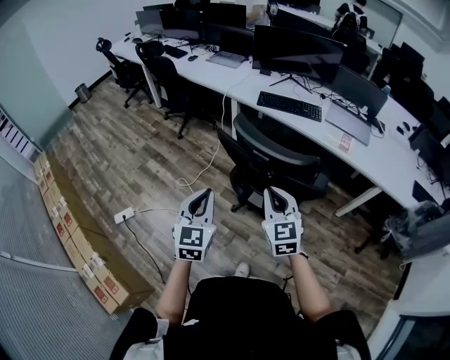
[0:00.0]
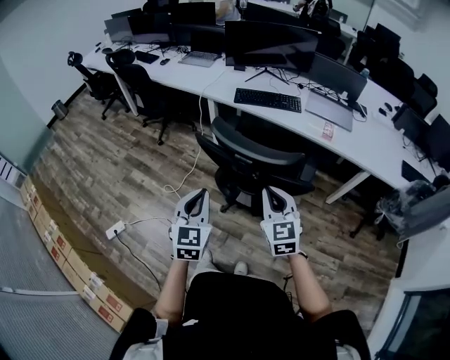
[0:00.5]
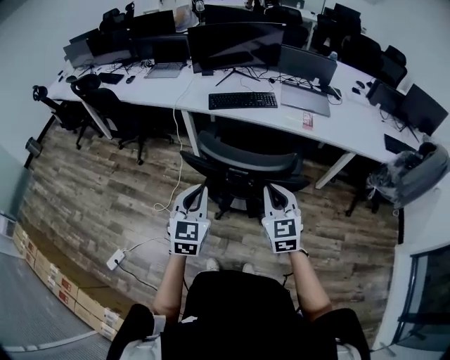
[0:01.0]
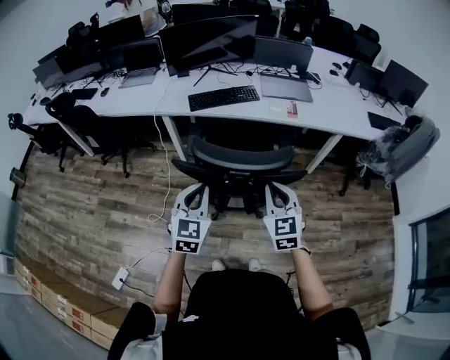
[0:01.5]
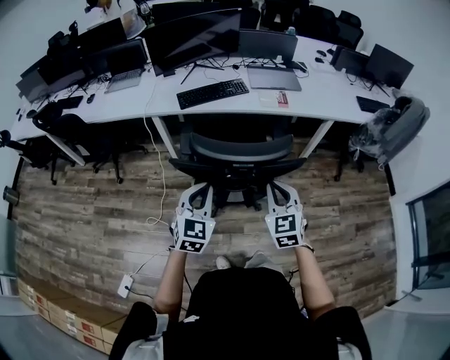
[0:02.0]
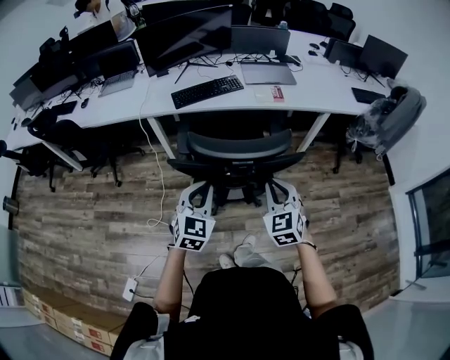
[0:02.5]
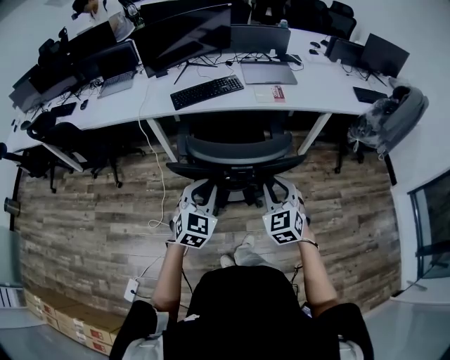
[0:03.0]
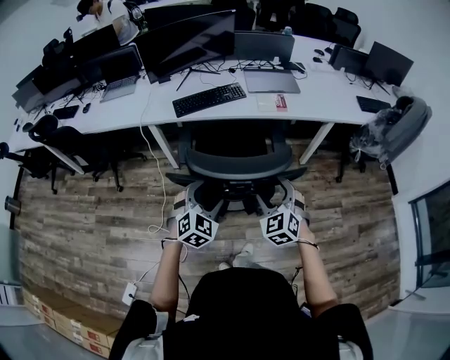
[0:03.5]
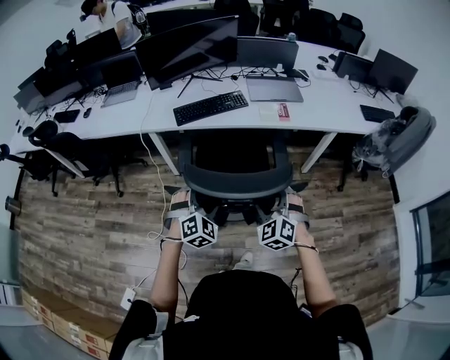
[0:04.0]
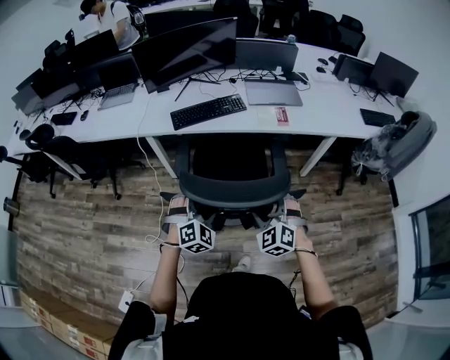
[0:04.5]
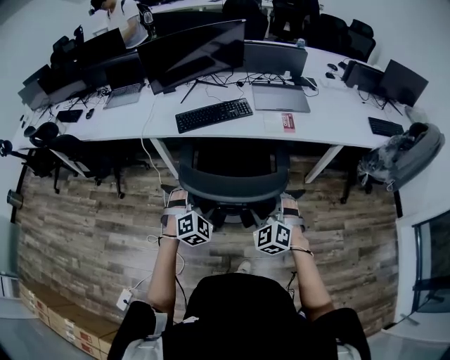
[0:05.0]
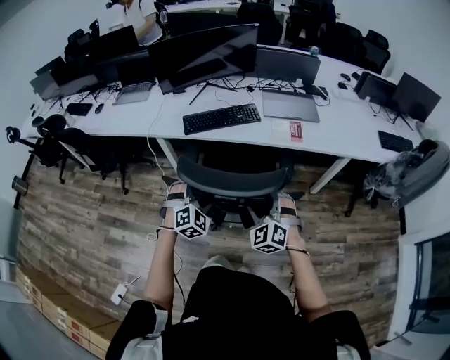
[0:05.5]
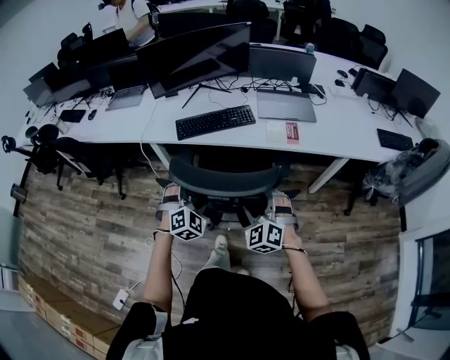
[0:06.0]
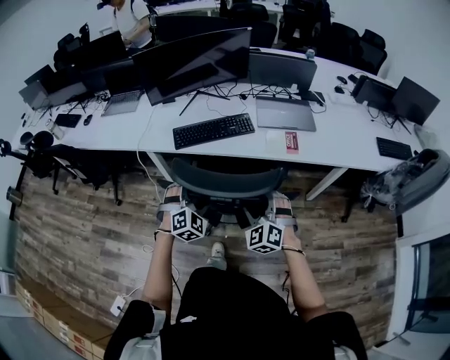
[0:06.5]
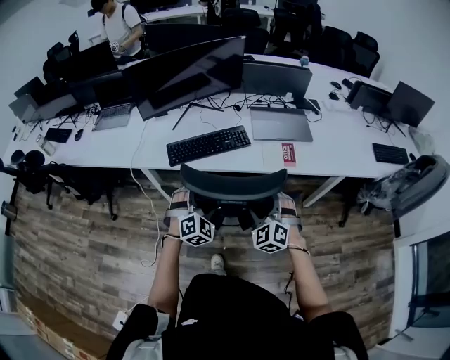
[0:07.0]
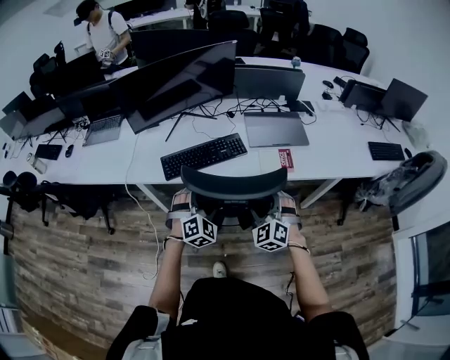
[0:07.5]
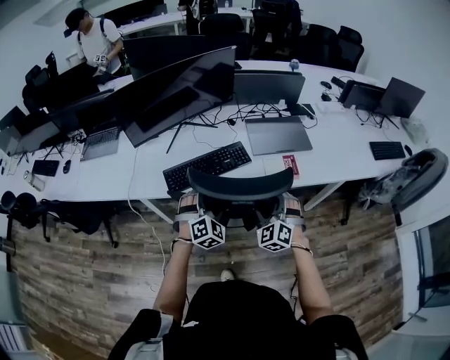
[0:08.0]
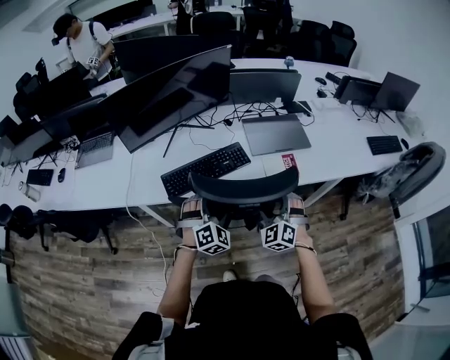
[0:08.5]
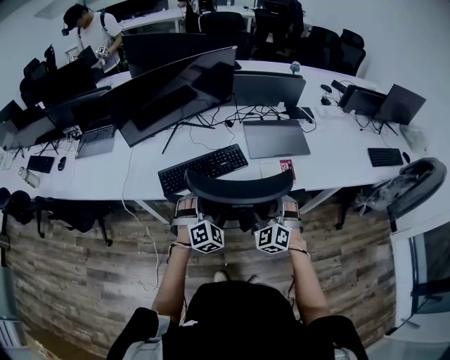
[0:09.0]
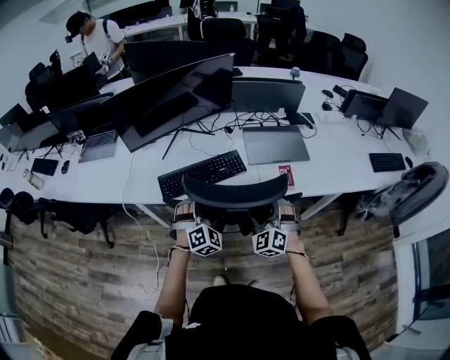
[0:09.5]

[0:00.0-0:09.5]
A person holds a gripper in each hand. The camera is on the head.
0:00.0 to 0:02.0: The left gripper shifts by some 15 cm, and turns by some 40 degrees. The right gripper shifts by roughly 5 cm, and rotates approximately 40 degrees.
0:02.0 to 0:04.0: Both grippers move forward and downward, about 10 cm. The right gripper swivels some 30 degrees, and opens its fingers. Meanwhile the left gripper rotates about 40 degrees, and opens.
0:04.0 to 0:05.5: The grippers both shift forward by about 10 cm.
0:05.5 to 0:07.5: The grippers both shift forward by roughly 20 cm.
0:07.5 to 0:09.5: Both grippers move forward, some 5 cm.

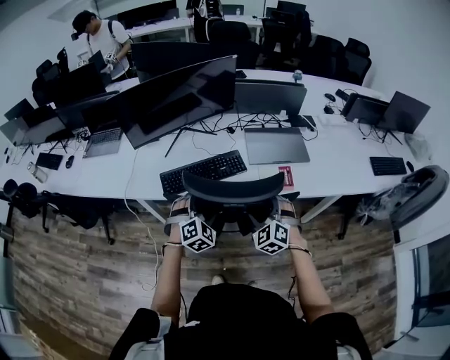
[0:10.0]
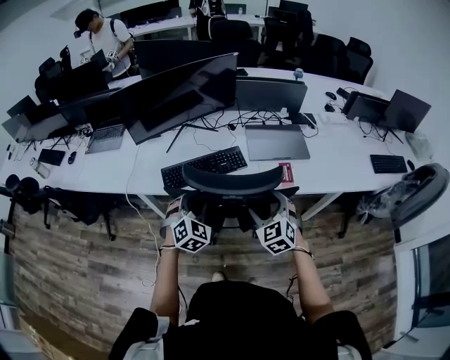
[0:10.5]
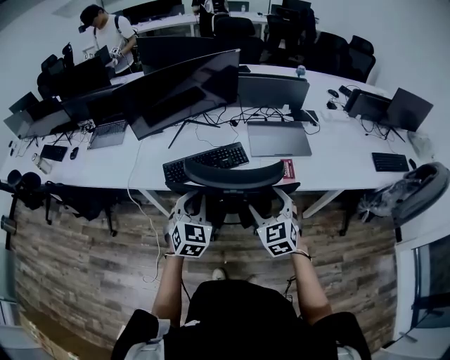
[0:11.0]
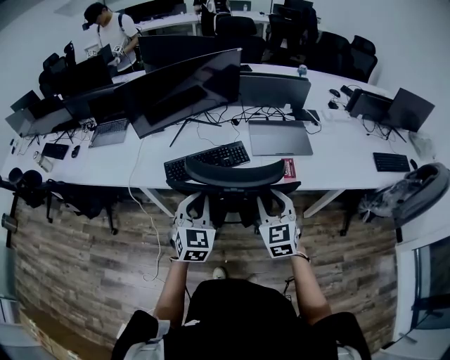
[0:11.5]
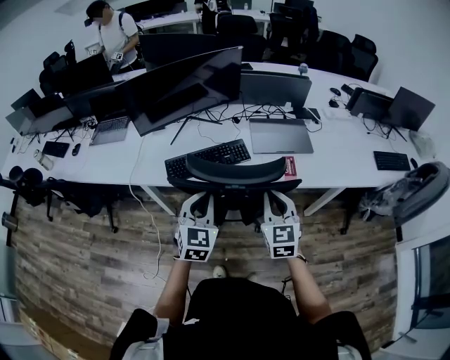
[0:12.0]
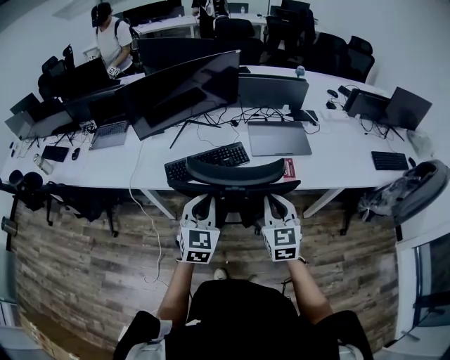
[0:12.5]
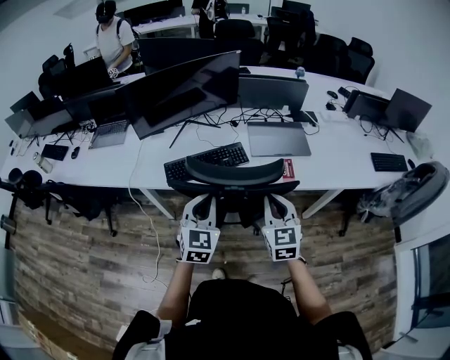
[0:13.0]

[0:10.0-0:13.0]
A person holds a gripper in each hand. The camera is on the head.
0:10.0 to 0:11.5: The left gripper shifts approximately 10 cm upward and backward, changes its angle by roughly 40 degrees, and closes its fingers. Meanwhile the right gripper travels upward by about 10 cm, changes its angle by roughly 30 degrees, and closes.
0:11.5 to 0:13.0: The grippers stay close to where they were, moving slightly.

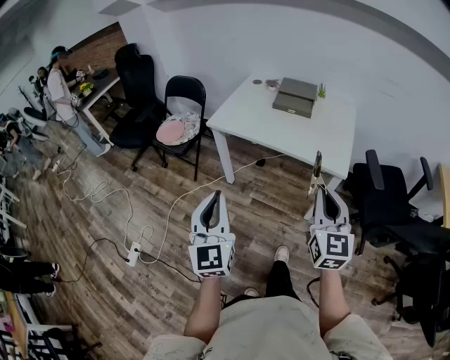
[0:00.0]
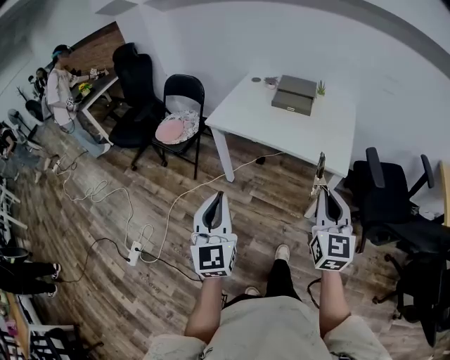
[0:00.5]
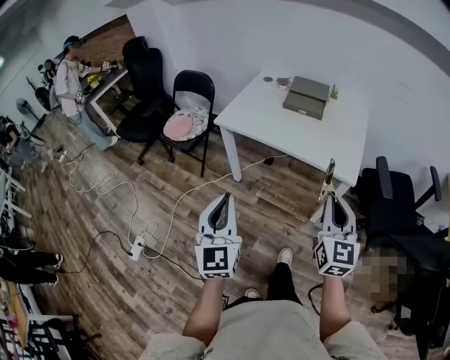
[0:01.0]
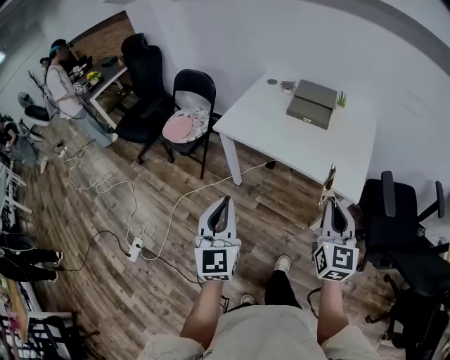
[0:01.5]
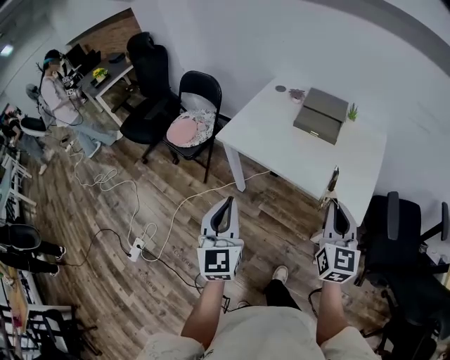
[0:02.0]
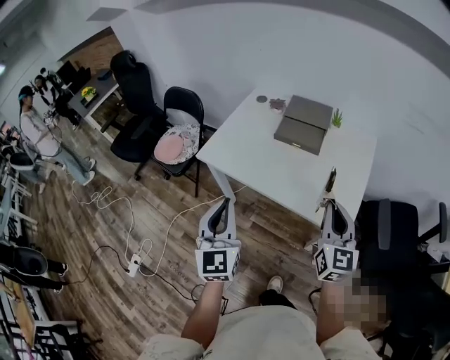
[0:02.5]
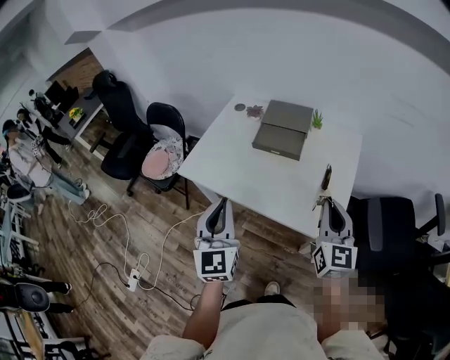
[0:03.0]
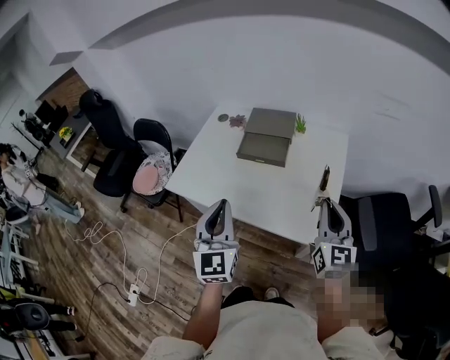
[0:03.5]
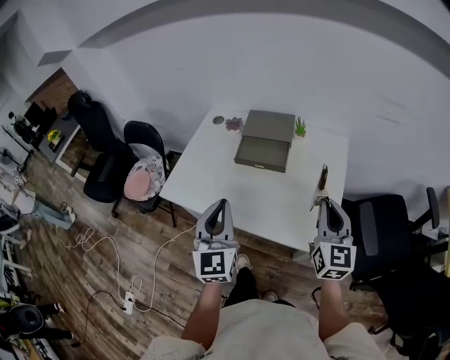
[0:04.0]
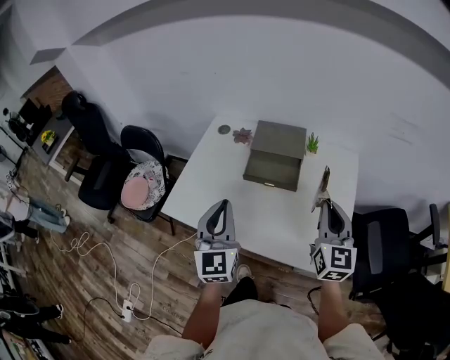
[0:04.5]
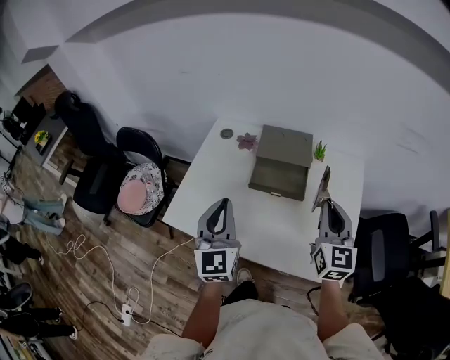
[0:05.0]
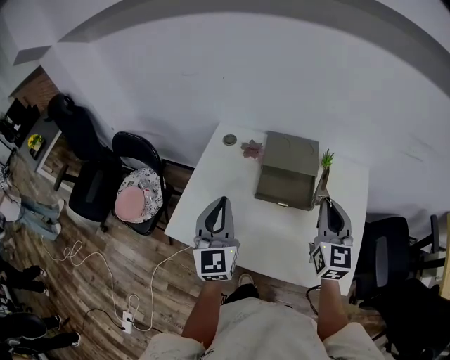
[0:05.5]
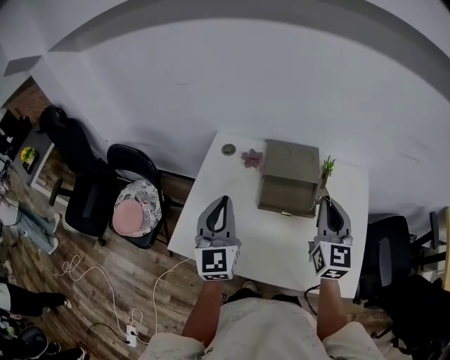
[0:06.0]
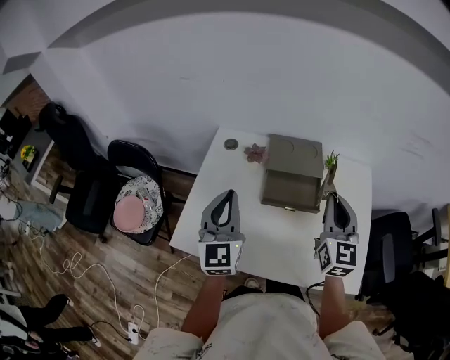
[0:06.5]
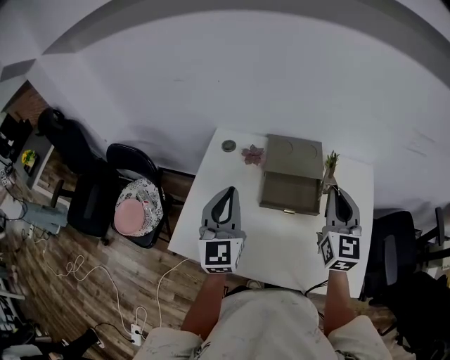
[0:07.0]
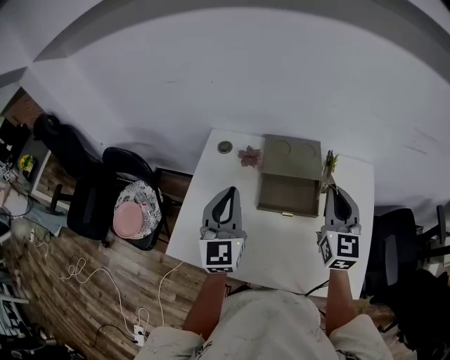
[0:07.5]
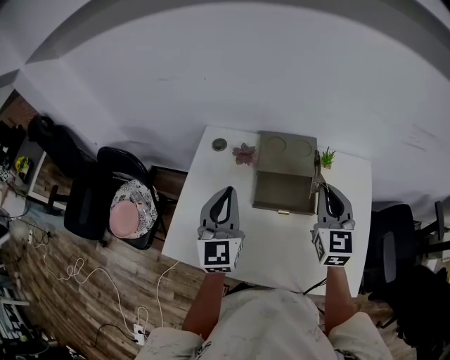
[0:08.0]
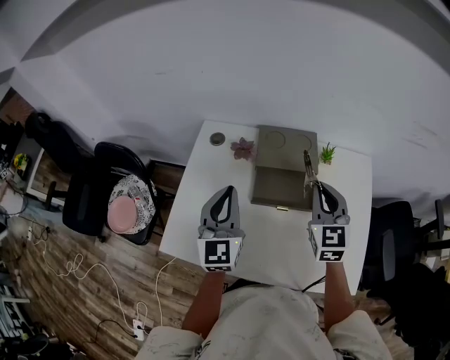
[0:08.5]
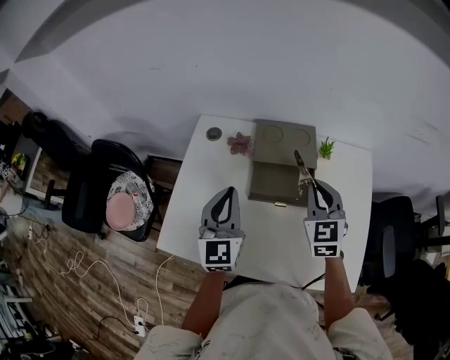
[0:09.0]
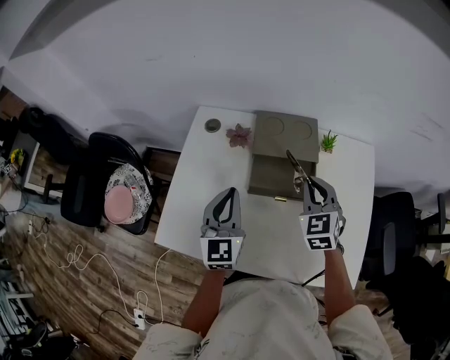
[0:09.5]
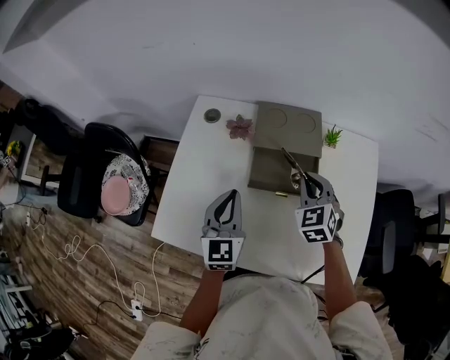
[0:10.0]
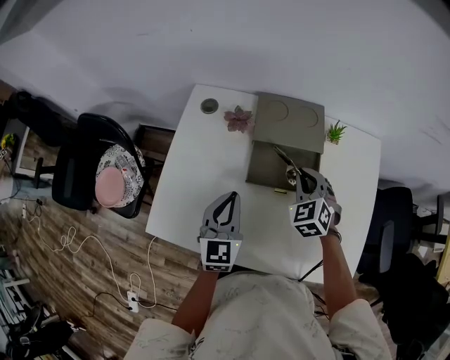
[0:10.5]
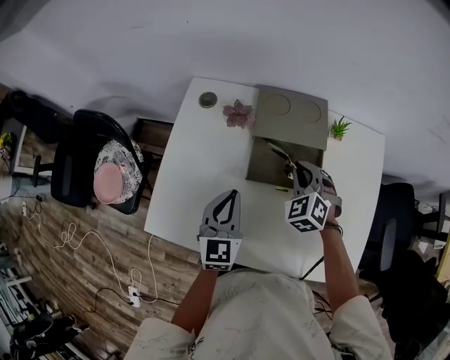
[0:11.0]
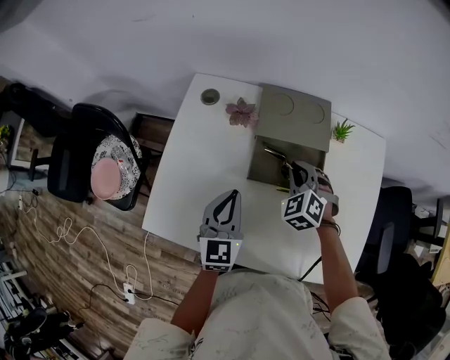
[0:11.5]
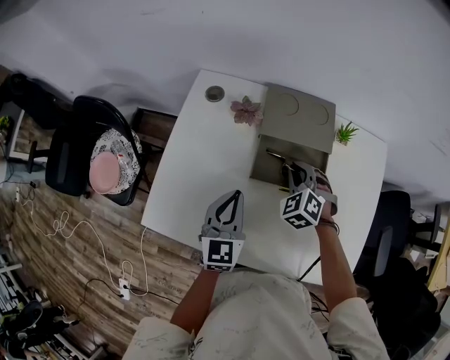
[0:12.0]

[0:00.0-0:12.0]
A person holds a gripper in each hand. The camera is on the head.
0:00.0 to 0:02.0: The grippers both shift forward by about 20 cm.
0:02.0 to 0:04.0: The grippers both shift forward and to the right by about 25 cm.
0:04.0 to 0:06.0: Both grippers move forward and to the left, about 30 cm.
0:06.0 to 0:08.0: The two grippers go some 5 cm forward.
0:08.0 to 0:10.0: Both grippers travel together downward, roughly 10 cm. The right gripper swivels approximately 30 degrees.
0:10.0 to 0:12.0: The left gripper shifts roughly 5 cm downward. Meanwhile the right gripper is displaced downward by approximately 10 cm, and changes its angle by roughly 20 degrees.

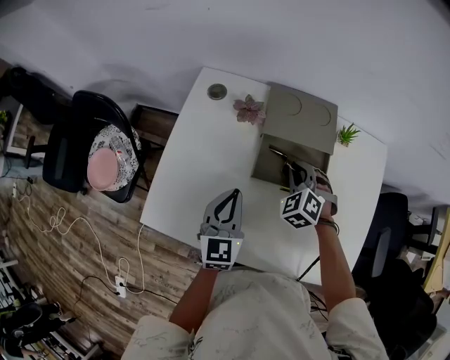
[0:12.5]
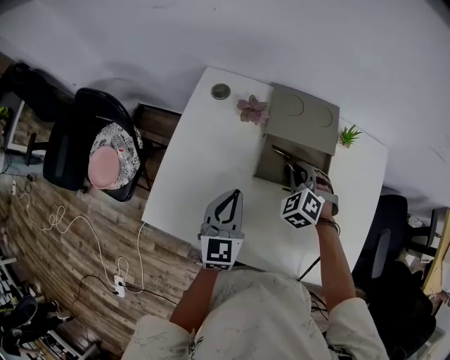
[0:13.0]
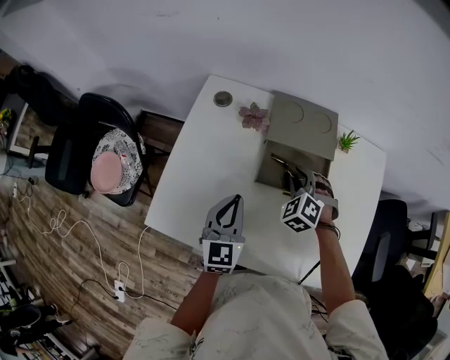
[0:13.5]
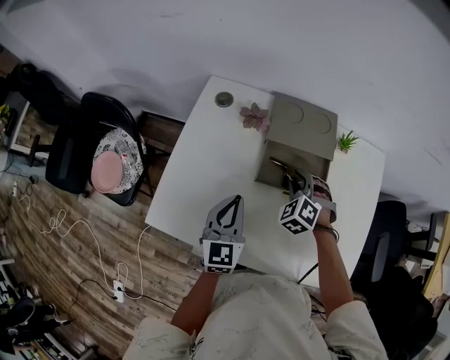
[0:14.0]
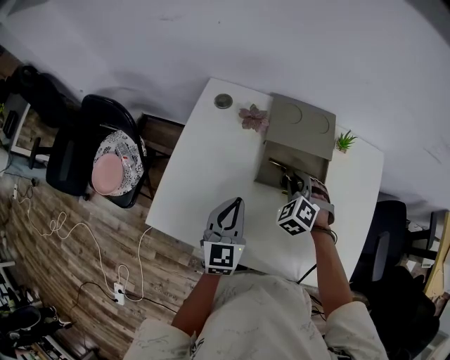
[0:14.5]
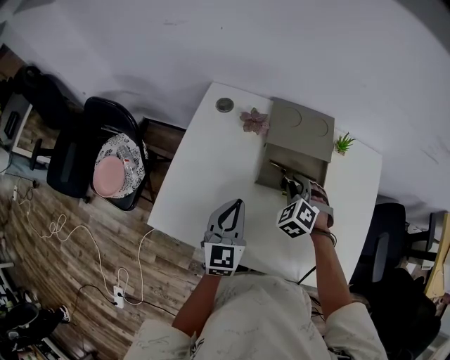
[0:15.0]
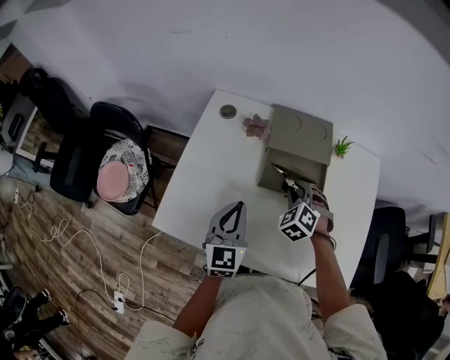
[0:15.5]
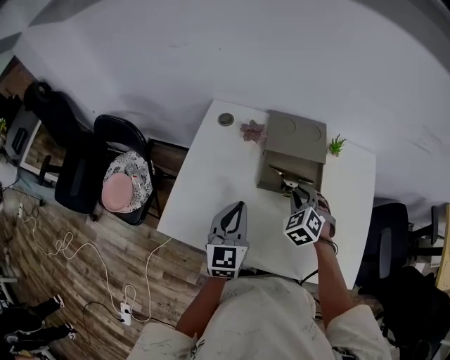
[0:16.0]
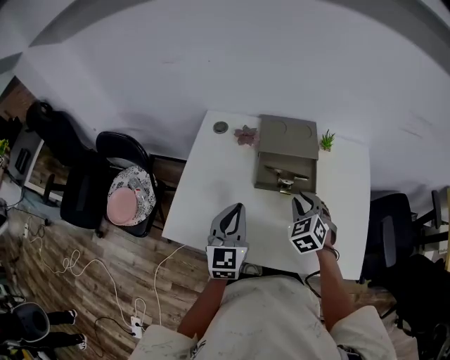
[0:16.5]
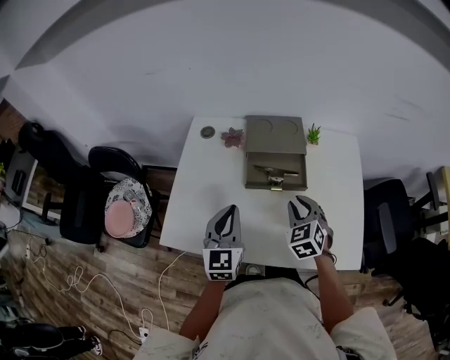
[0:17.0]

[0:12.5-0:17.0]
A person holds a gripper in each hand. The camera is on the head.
0:12.5 to 0:14.5: The grippers make only small movements.
0:14.5 to 0:17.0: The left gripper goes roughly 5 cm upward. Meanwhile the right gripper travels backward and upward by approximately 15 cm, and rotates some 30 degrees.
